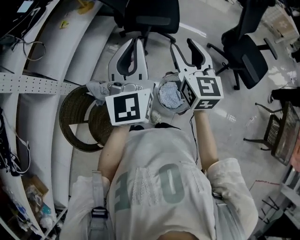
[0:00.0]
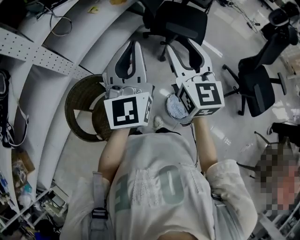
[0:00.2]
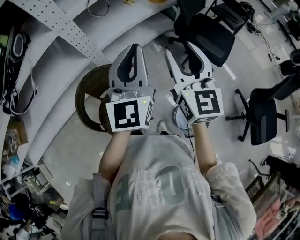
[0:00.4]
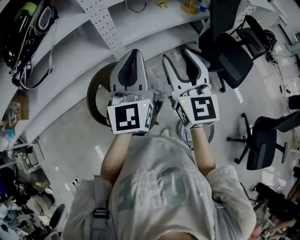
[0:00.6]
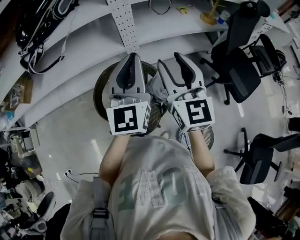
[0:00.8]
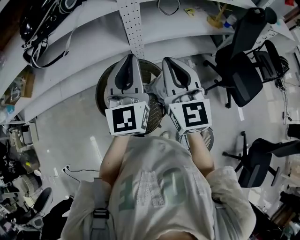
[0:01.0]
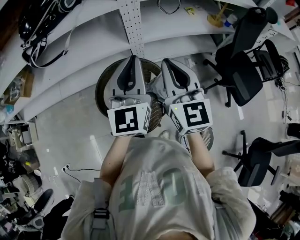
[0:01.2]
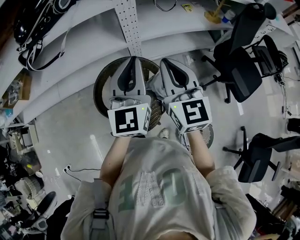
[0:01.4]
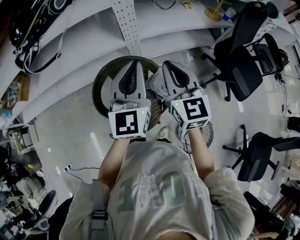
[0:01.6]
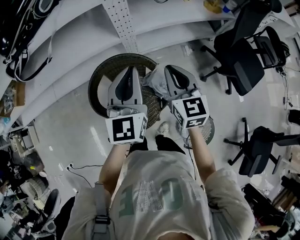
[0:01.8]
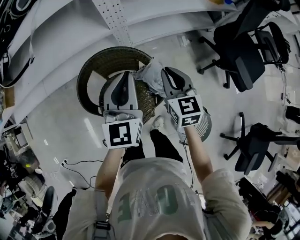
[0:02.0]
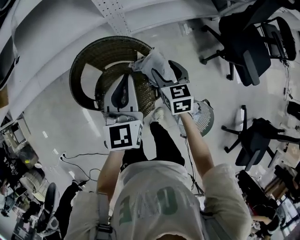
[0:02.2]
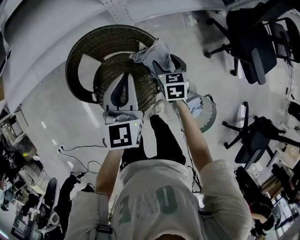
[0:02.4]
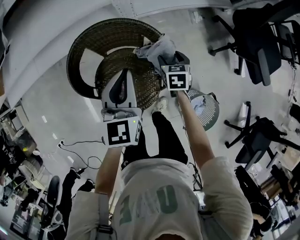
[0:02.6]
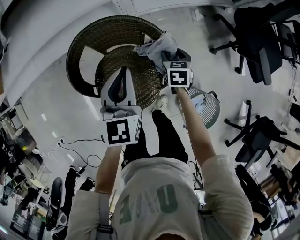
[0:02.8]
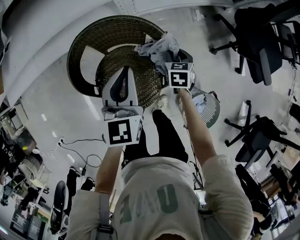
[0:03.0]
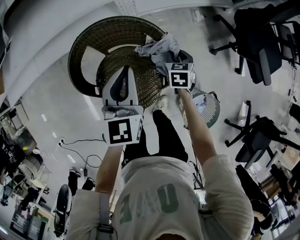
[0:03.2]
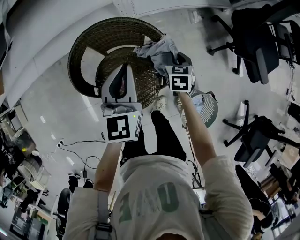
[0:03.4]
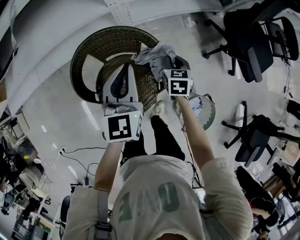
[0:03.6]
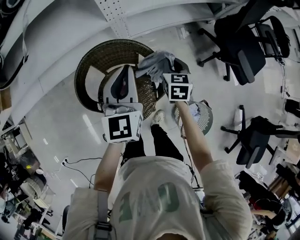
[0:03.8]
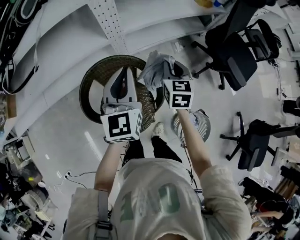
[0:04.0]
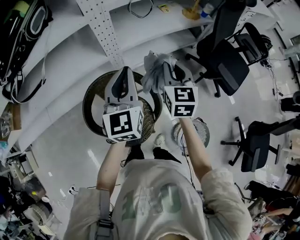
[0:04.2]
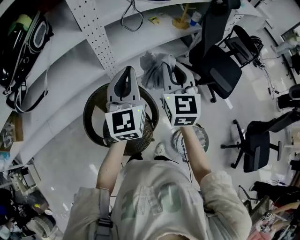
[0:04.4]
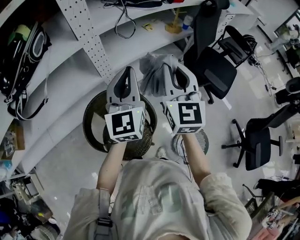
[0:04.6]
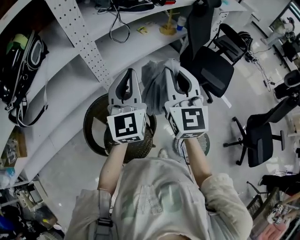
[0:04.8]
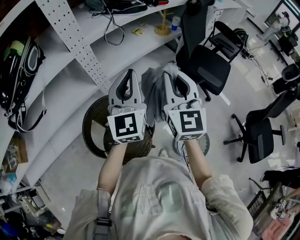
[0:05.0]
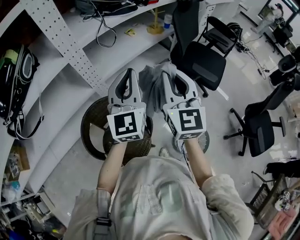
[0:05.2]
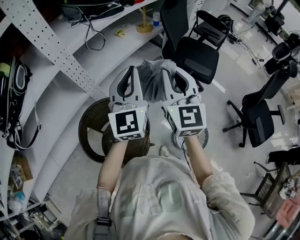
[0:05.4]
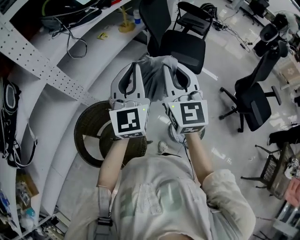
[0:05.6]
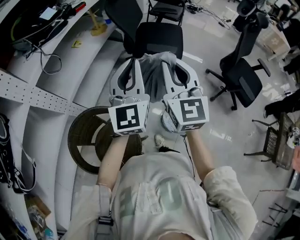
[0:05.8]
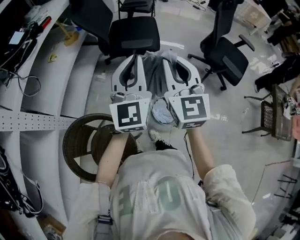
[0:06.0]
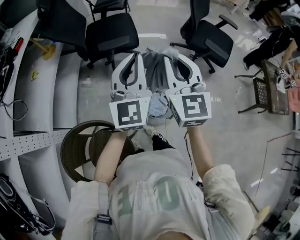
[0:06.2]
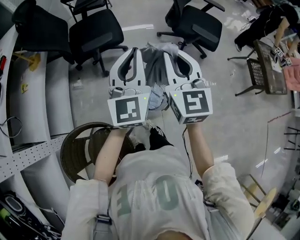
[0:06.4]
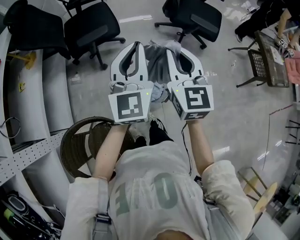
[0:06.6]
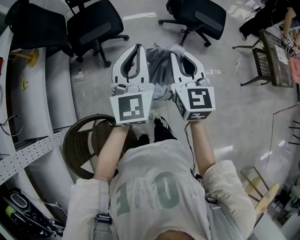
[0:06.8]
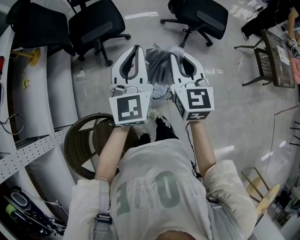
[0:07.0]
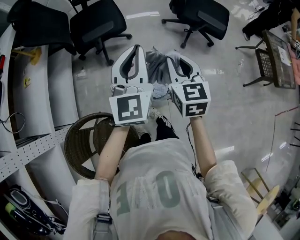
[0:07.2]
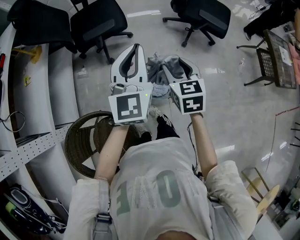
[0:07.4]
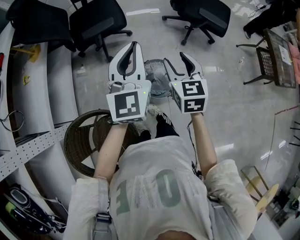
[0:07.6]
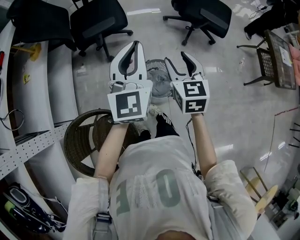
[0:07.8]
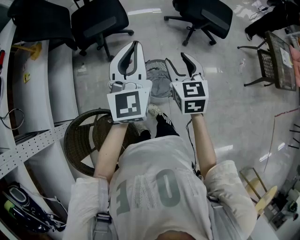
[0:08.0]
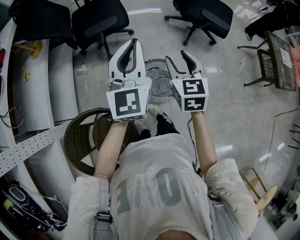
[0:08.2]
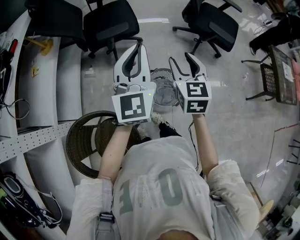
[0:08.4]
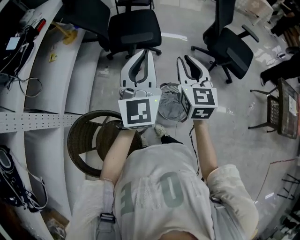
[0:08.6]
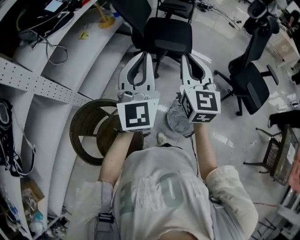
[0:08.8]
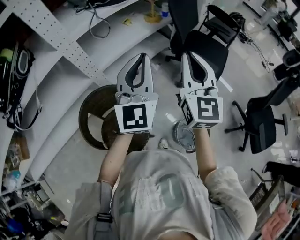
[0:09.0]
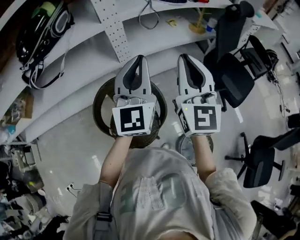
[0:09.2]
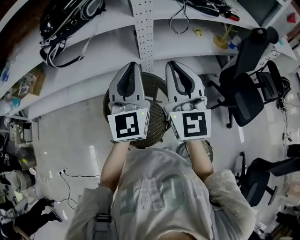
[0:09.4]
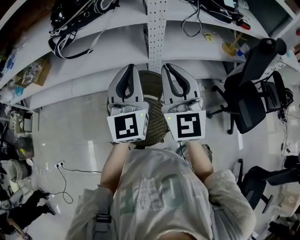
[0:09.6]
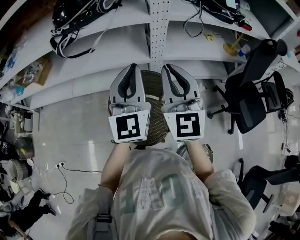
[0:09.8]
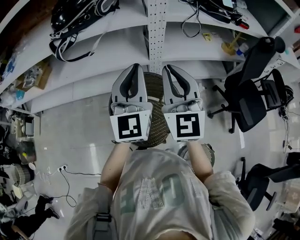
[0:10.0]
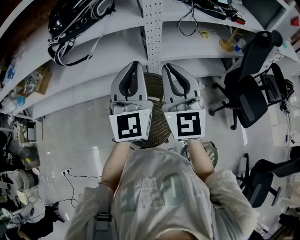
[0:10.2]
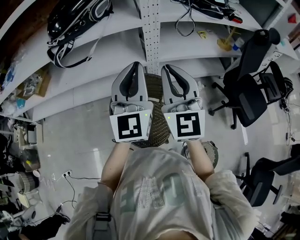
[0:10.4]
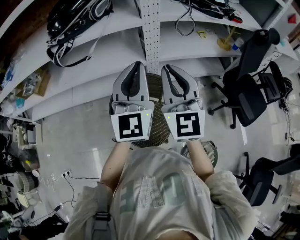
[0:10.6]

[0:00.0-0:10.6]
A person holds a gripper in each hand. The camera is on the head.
0:00.0 to 0:01.6: The right gripper travels upward and back again, about 5 cm each way, changes its angle by about 60 degrees, and closes; the left gripper moves some 40 cm, and changes its angle by about 50 degrees.
0:01.6 to 0:03.0: The left gripper moves downward, roughly 25 cm, and changes its angle by approximately 20 degrees; the right gripper heads downward, covering about 40 cm, angles its fingers downward, by some 50 degrees, and opens.
0:03.0 to 0:04.6: The right gripper shifts about 50 cm upward, and angles its fingers upward, by roughly 60 degrees. Meanwhile the left gripper shifts approximately 30 cm upward, and rotates roughly 30 degrees.
0:04.6 to 0:06.0: The left gripper moves some 35 cm, and rotates about 50 degrees, while the right gripper changes place by some 30 cm, and rotates approximately 40 degrees.
0:06.0 to 0:07.6: The right gripper heads to the right and downward, covering about 25 cm, swivels roughly 40 degrees, and opens; the left gripper goes approximately 15 cm to the right and downward, and rotates about 20 degrees.
0:07.6 to 0:09.0: The left gripper shifts by about 35 cm, and changes its angle by approximately 60 degrees. Meanwhile the right gripper changes place by some 40 cm, points its fingers some 30 degrees further upward, and closes.
0:09.0 to 0:10.6: The right gripper changes place by roughly 35 cm, and changes its angle by approximately 40 degrees; the left gripper ends up about 30 cm from where it was, and rotates approximately 30 degrees.

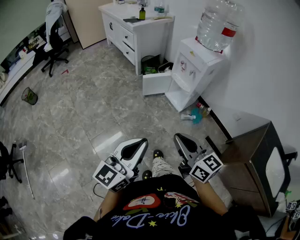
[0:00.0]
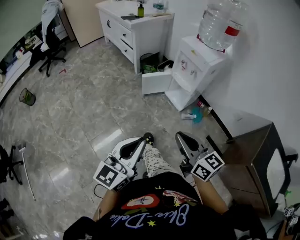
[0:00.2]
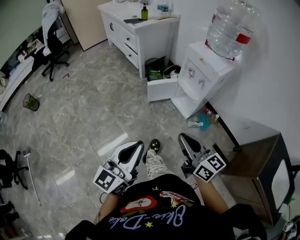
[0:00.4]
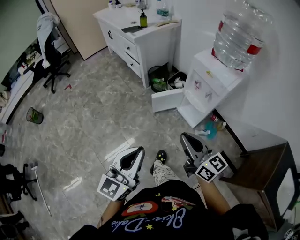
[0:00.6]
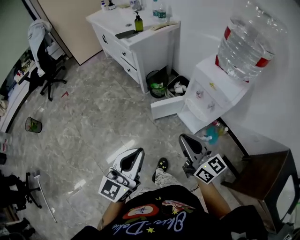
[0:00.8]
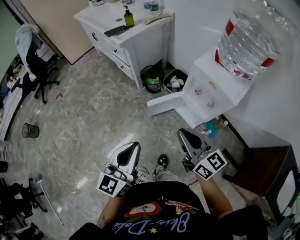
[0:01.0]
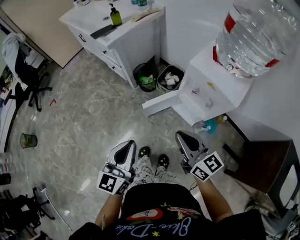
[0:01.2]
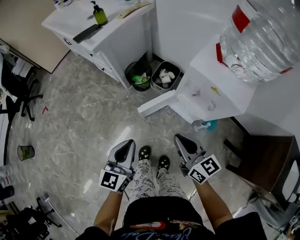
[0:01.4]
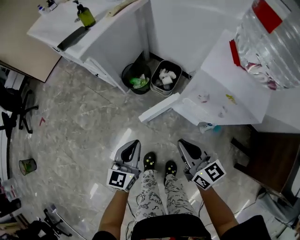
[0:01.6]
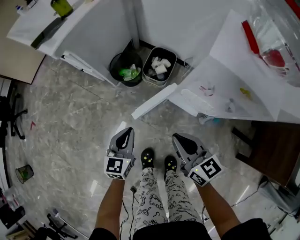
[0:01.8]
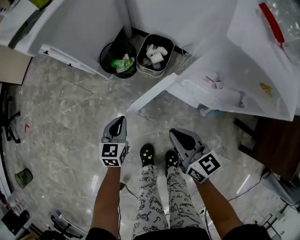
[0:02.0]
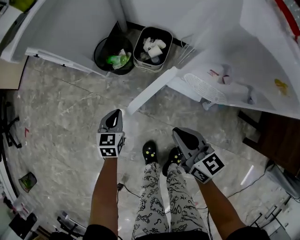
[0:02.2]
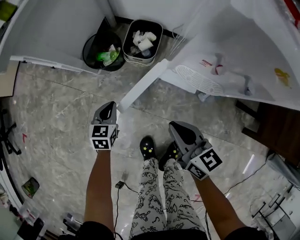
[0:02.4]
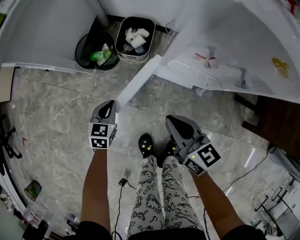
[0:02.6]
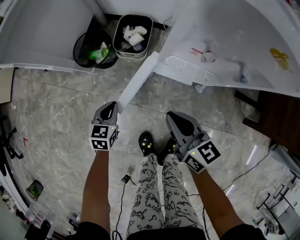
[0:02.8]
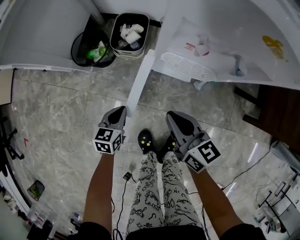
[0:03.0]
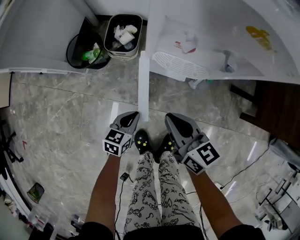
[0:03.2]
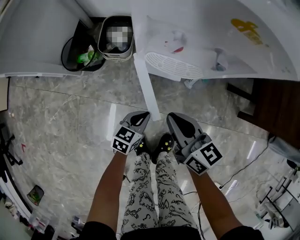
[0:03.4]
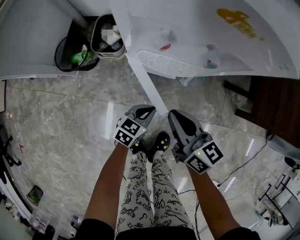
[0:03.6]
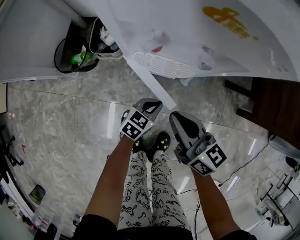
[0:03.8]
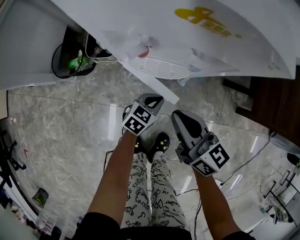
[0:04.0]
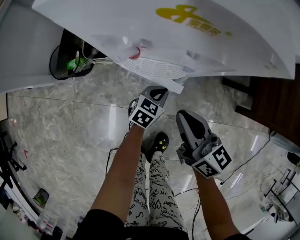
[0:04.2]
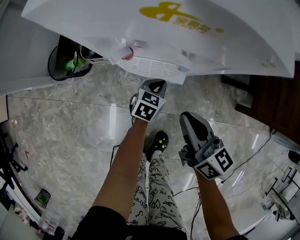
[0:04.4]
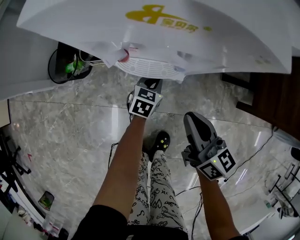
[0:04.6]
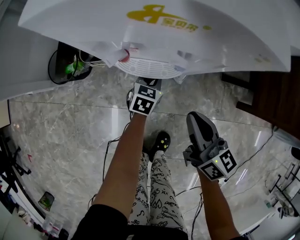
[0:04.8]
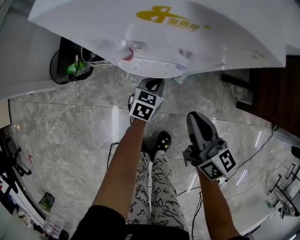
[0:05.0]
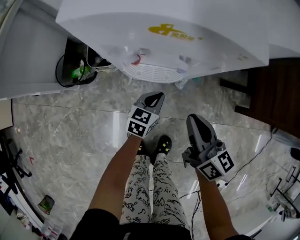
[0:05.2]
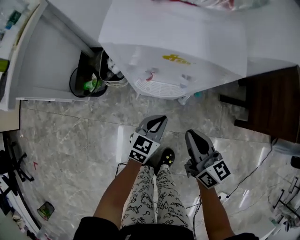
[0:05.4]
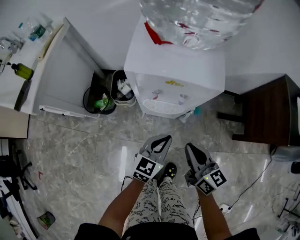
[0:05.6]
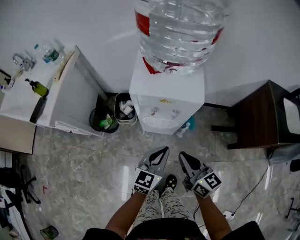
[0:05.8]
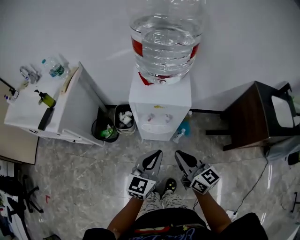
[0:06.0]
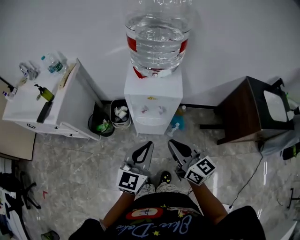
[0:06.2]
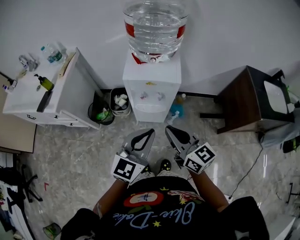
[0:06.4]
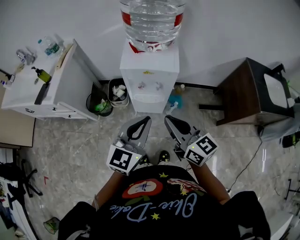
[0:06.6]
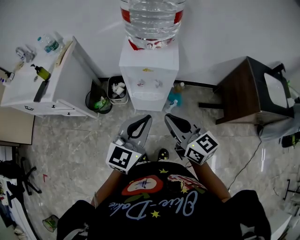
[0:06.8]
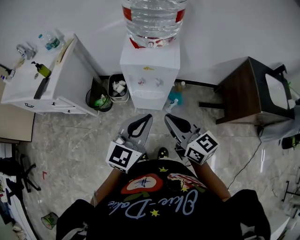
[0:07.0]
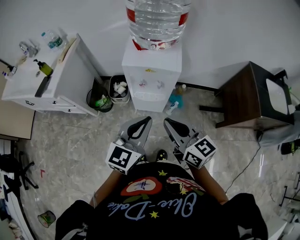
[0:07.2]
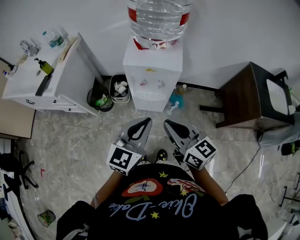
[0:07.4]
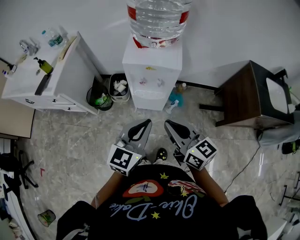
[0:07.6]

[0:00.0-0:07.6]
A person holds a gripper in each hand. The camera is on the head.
0:00.0 to 0:01.6: The two grippers travel together, forward, roughly 60 cm. The left gripper moves downward, roughly 30 cm, and rotates roughly 20 degrees. Meanwhile the right gripper changes its angle by approximately 20 degrees.
0:01.6 to 0:03.0: The right gripper moves downward, about 20 cm, and swivels some 20 degrees, while the left gripper is displaced downward by about 30 cm, and changes its angle by about 30 degrees.
0:03.0 to 0:04.6: The left gripper moves to the right and forward, some 35 cm, and changes its angle by roughly 20 degrees, while the right gripper shifts some 20 cm to the right.
0:04.6 to 0:06.0: The left gripper heads upward and backward, covering about 50 cm, and angles its fingers upward, by roughly 30 degrees. Meanwhile the right gripper is displaced upward by some 30 cm.
0:06.0 to 0:07.6: The right gripper moves backward and upward, about 10 cm. Meanwhile the left gripper shifts about 10 cm upward and backward.

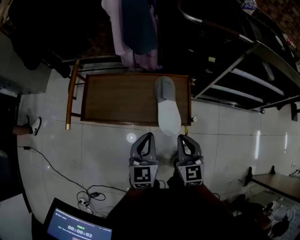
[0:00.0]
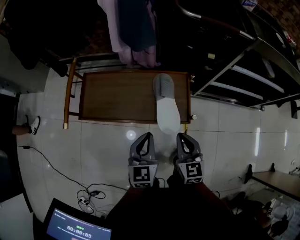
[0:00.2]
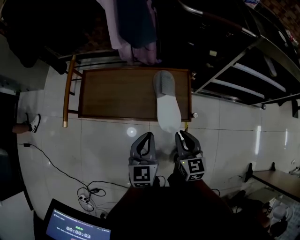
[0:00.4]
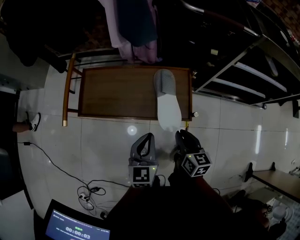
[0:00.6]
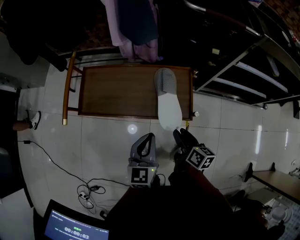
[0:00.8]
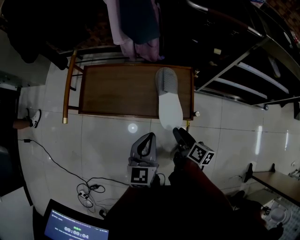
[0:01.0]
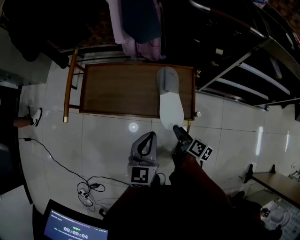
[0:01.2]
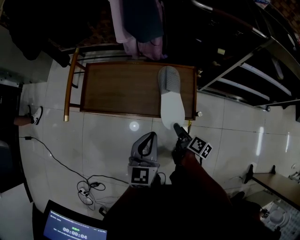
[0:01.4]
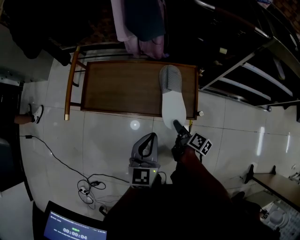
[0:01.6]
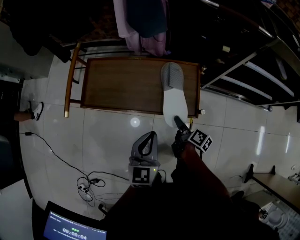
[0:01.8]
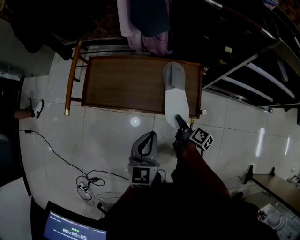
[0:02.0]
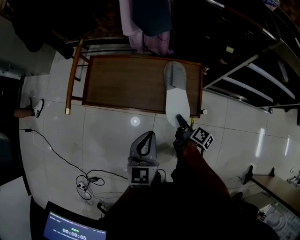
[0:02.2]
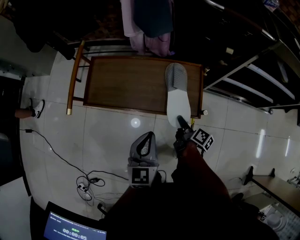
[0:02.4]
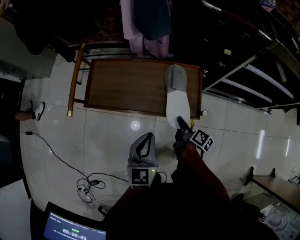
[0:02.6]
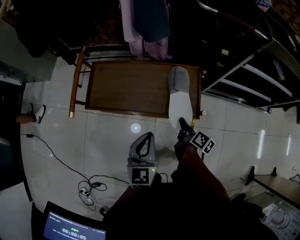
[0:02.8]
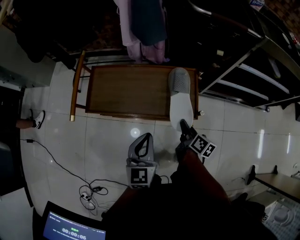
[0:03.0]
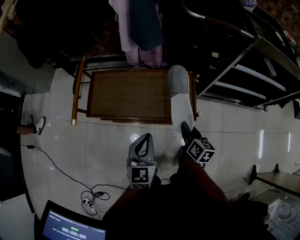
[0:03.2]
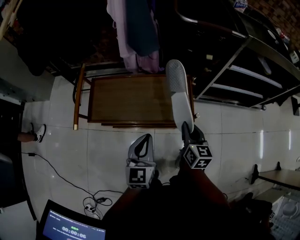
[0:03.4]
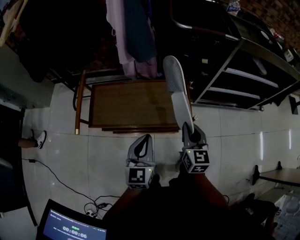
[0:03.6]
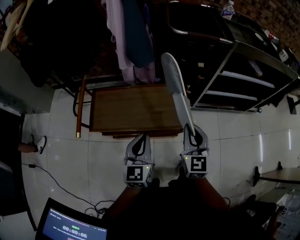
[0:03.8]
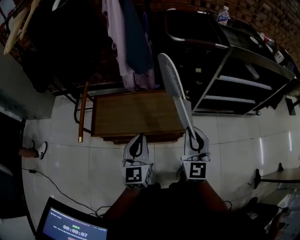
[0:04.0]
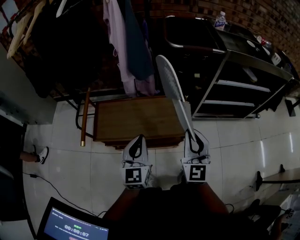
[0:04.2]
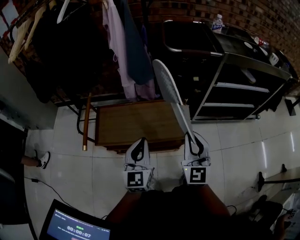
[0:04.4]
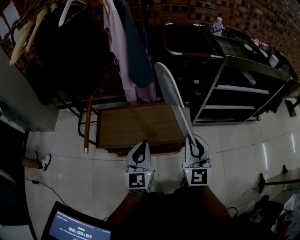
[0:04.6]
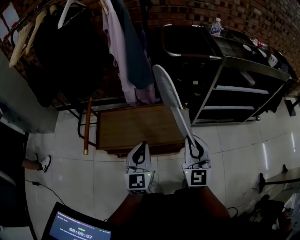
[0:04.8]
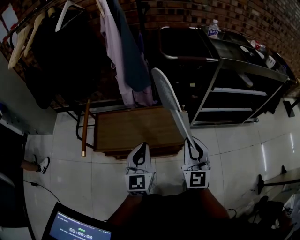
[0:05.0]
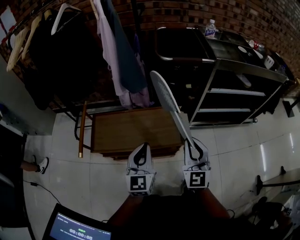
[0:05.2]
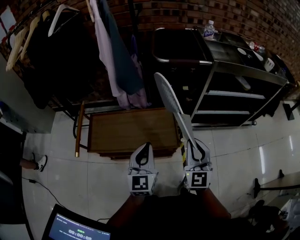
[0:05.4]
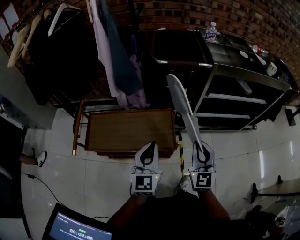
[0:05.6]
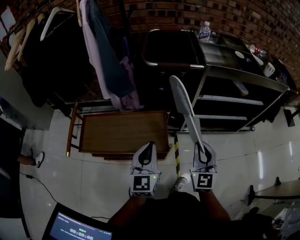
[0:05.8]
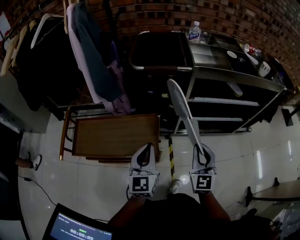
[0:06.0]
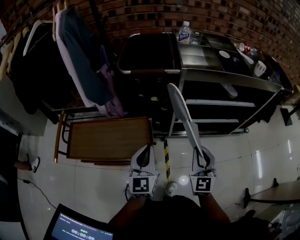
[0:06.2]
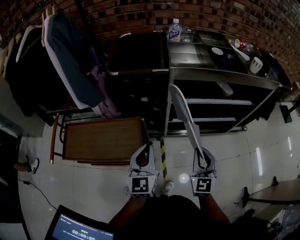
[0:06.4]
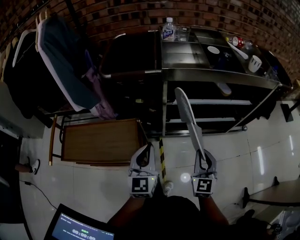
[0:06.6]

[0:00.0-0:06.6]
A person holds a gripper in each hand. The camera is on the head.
0:00.0 to 0:01.6: The right gripper moves downward, approximately 15 cm, rolls clockwise, seen from behind, by approximately 70 degrees, and opens up.
0:01.6 to 0:03.2: The right gripper moves upward, approximately 10 cm, swivels approximately 30 degrees, and closes up.
0:03.2 to 0:05.0: The left gripper goes about 10 cm upward. Meanwhile the right gripper shifts roughly 25 cm upward, and twists some 50 degrees counterclockwise, seen from behind.
0:05.0 to 0:06.6: Both grippers travel together to the right, some 35 cm.
